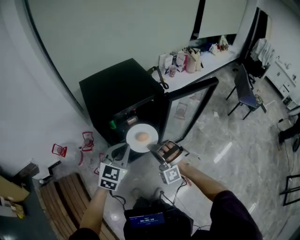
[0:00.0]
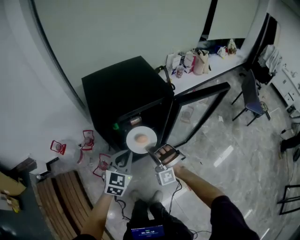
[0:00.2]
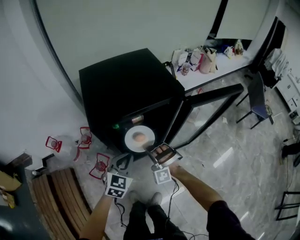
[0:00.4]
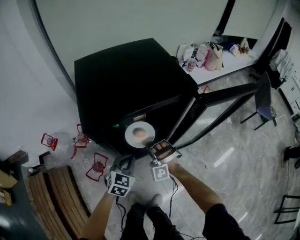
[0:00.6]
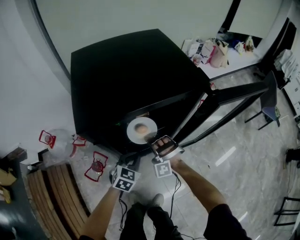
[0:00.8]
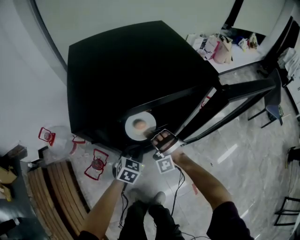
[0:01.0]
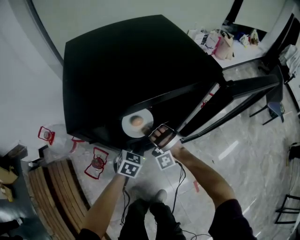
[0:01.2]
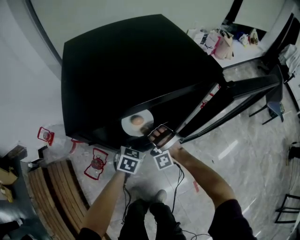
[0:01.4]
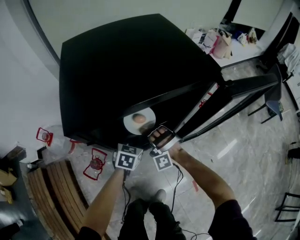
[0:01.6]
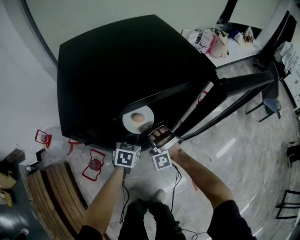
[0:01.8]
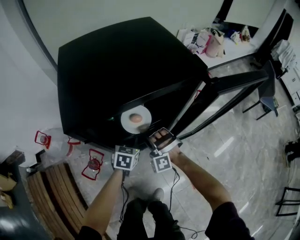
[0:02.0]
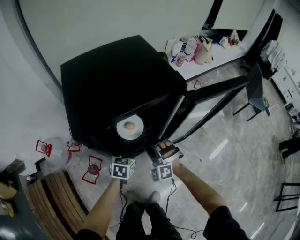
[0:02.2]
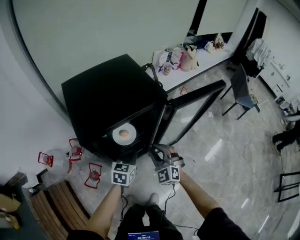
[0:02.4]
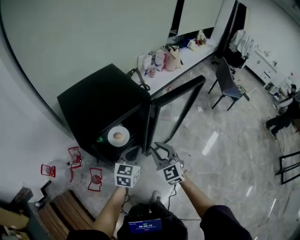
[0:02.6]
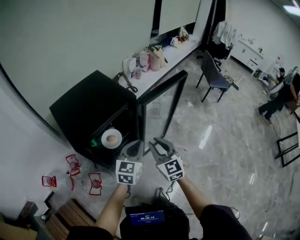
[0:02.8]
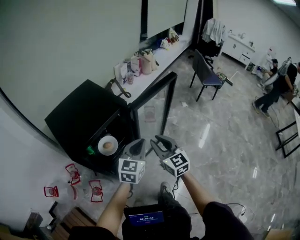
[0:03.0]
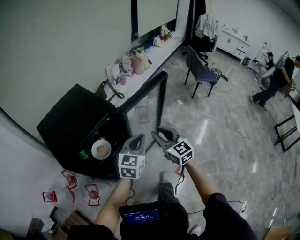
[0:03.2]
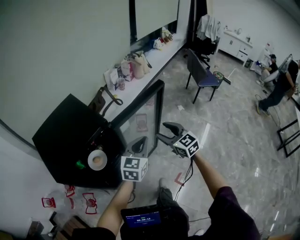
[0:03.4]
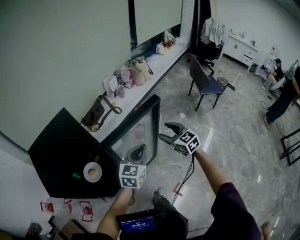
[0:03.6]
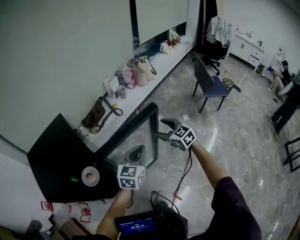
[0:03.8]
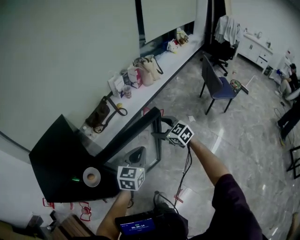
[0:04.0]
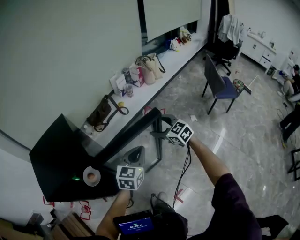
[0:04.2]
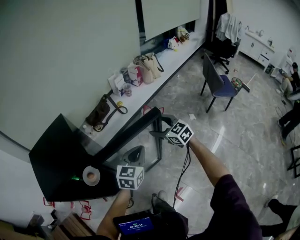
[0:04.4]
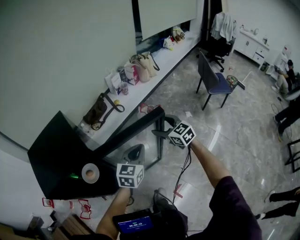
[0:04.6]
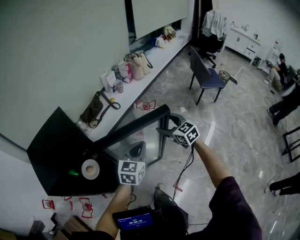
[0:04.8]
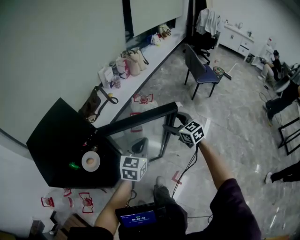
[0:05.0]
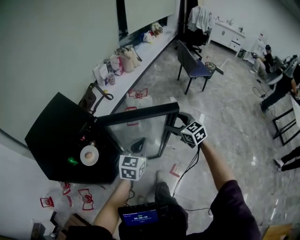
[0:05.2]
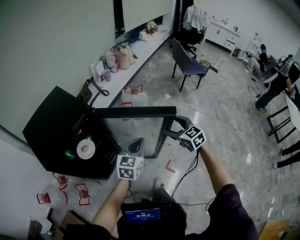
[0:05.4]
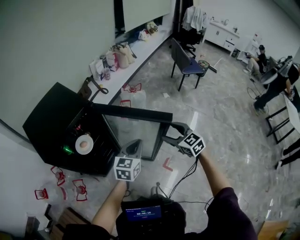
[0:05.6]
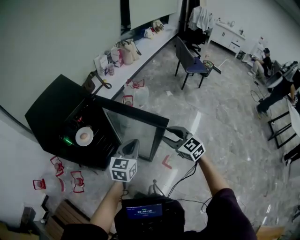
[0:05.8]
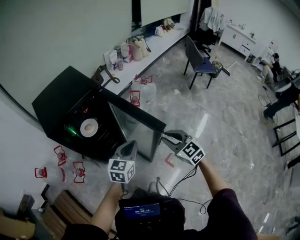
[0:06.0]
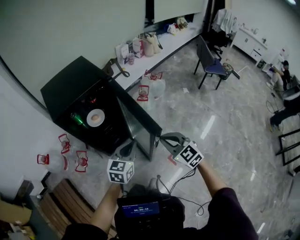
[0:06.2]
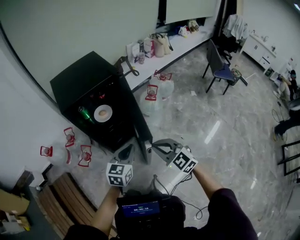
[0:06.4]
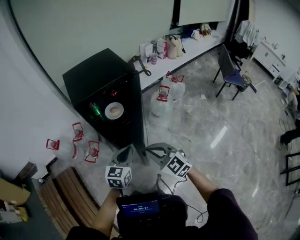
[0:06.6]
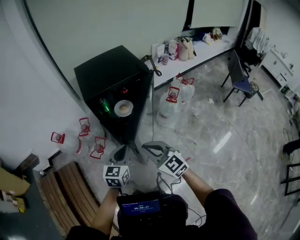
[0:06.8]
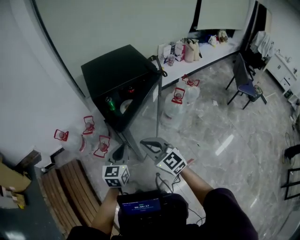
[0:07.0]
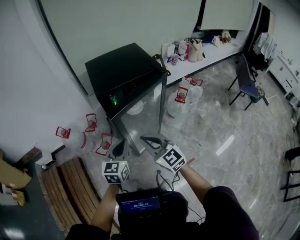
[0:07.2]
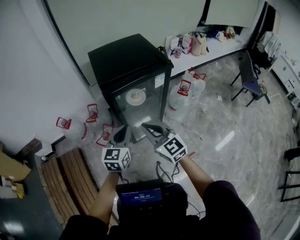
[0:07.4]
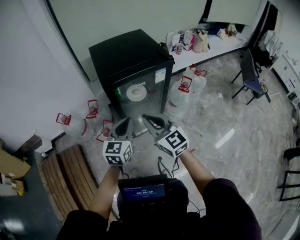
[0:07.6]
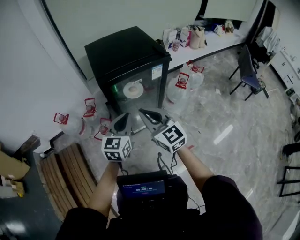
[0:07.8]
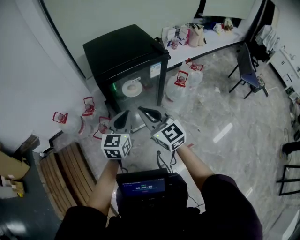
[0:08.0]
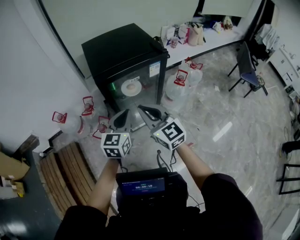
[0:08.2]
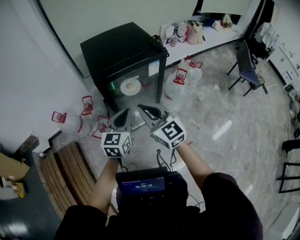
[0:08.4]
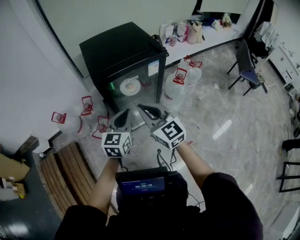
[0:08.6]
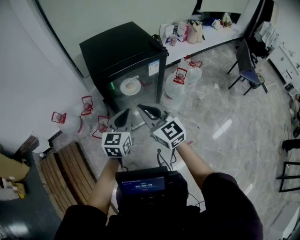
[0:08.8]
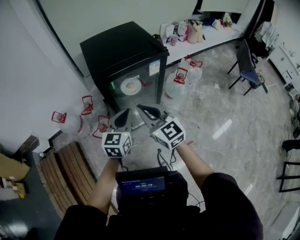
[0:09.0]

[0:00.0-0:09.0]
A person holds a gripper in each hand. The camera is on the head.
0:00.0 to 0:01.6: The grippers both shift downward and forward by approximately 35 cm. The left gripper turns by about 30 degrees.
0:01.6 to 0:03.0: The grippers both shift upward and to the right by roughly 40 cm. The left gripper tilts its fingers about 30 degrees upward; the right gripper rolls clockwise, seen from behind, by about 100 degrees.
0:03.0 to 0:04.4: The grippers both shift forward and to the right by about 35 cm. The right gripper swivels some 30 degrees, and opens its fingers.
0:04.4 to 0:06.0: Both grippers travel together backward, some 40 cm. The right gripper closes its fingers.
0:06.0 to 0:07.6: The right gripper ends up approximately 35 cm from where it was, and swivels some 30 degrees. Meanwhile the left gripper moves some 25 cm, and rotates some 30 degrees.
0:07.6 to 0:09.0: There are only small adjustments of the grippers.

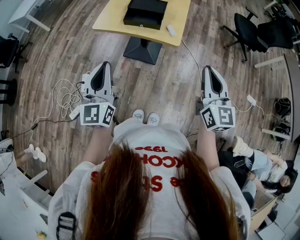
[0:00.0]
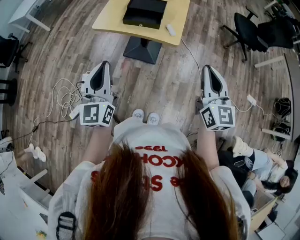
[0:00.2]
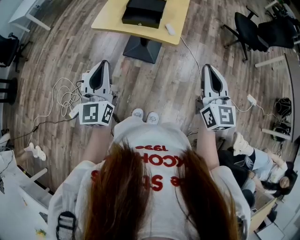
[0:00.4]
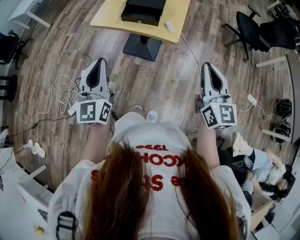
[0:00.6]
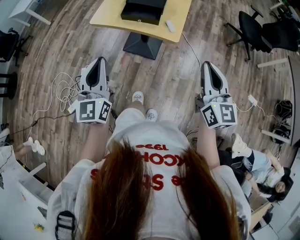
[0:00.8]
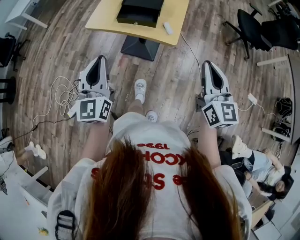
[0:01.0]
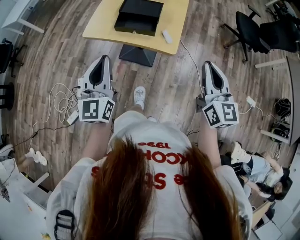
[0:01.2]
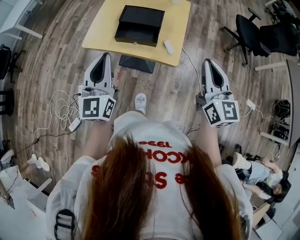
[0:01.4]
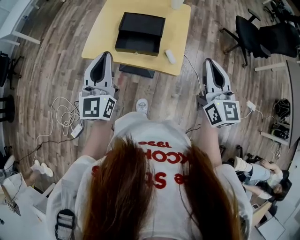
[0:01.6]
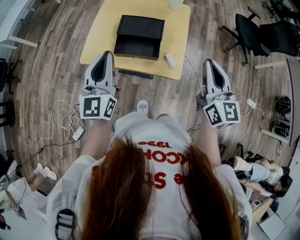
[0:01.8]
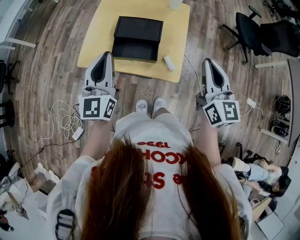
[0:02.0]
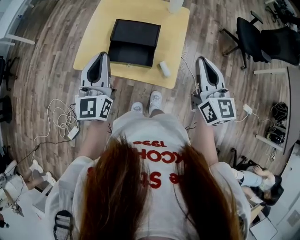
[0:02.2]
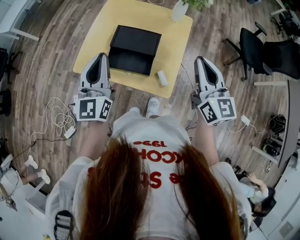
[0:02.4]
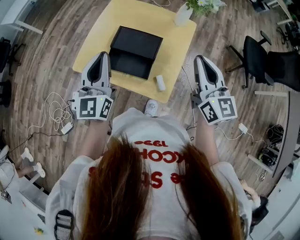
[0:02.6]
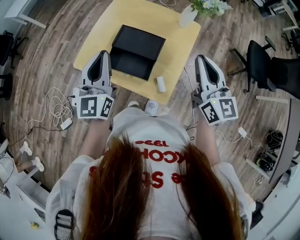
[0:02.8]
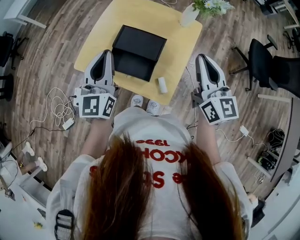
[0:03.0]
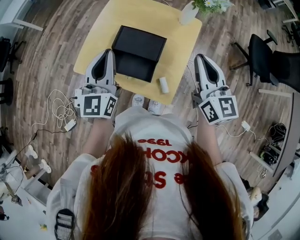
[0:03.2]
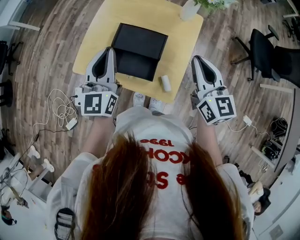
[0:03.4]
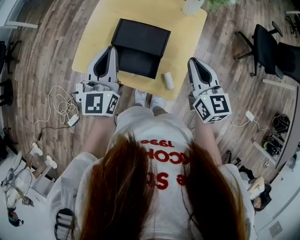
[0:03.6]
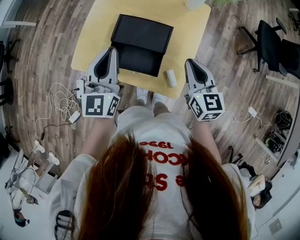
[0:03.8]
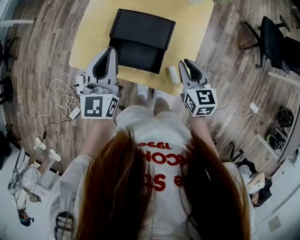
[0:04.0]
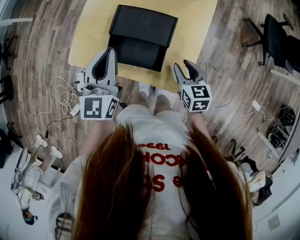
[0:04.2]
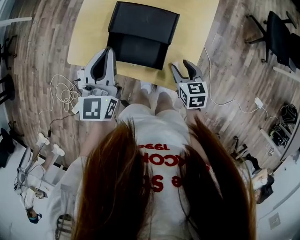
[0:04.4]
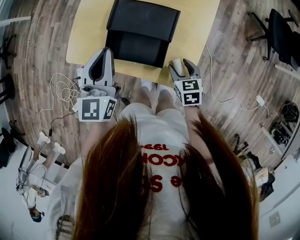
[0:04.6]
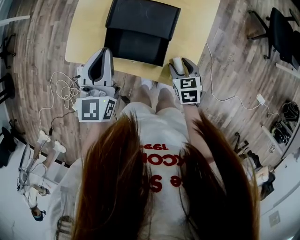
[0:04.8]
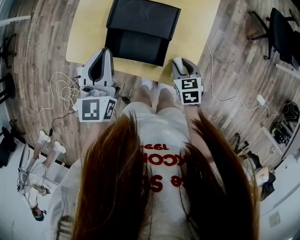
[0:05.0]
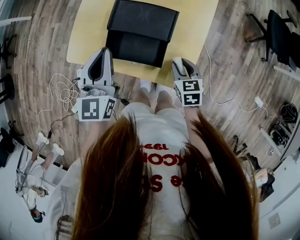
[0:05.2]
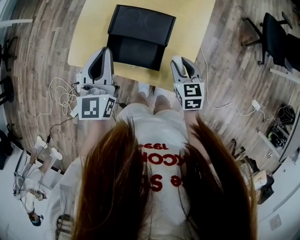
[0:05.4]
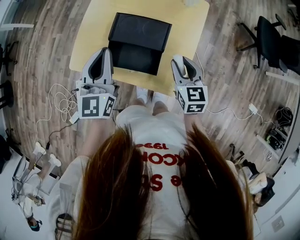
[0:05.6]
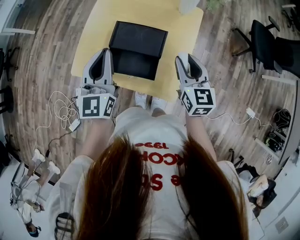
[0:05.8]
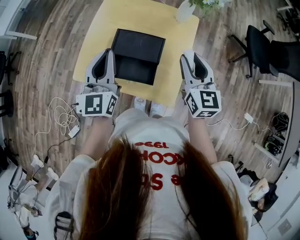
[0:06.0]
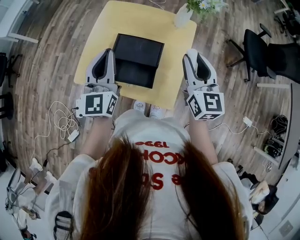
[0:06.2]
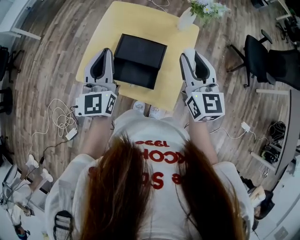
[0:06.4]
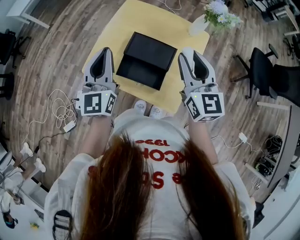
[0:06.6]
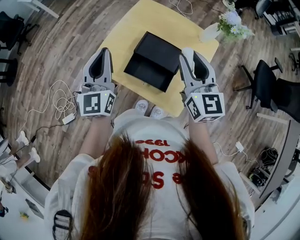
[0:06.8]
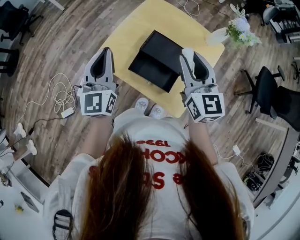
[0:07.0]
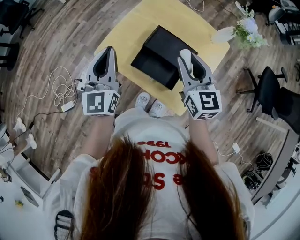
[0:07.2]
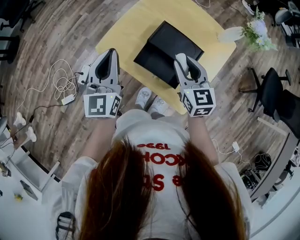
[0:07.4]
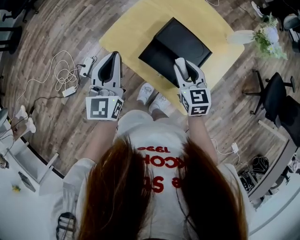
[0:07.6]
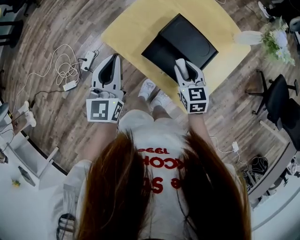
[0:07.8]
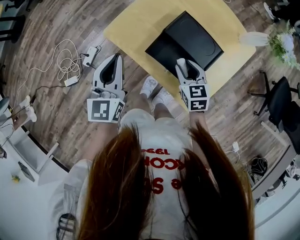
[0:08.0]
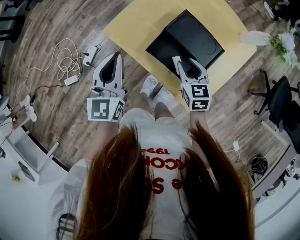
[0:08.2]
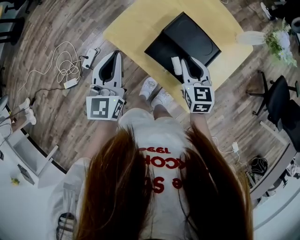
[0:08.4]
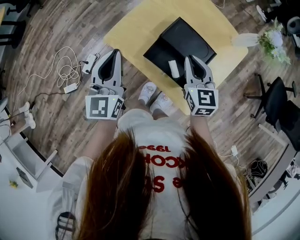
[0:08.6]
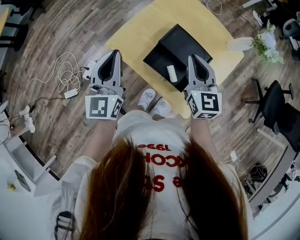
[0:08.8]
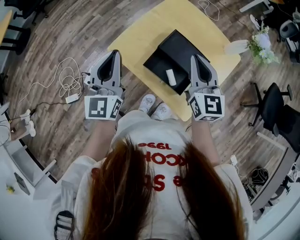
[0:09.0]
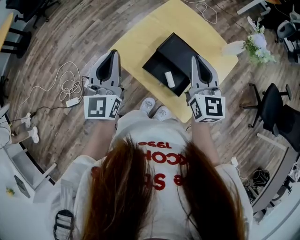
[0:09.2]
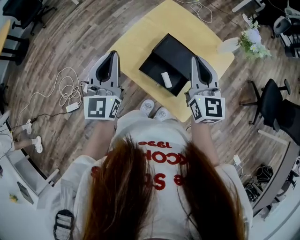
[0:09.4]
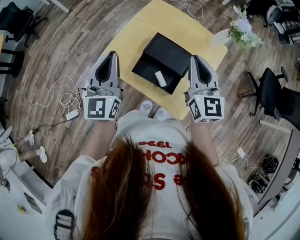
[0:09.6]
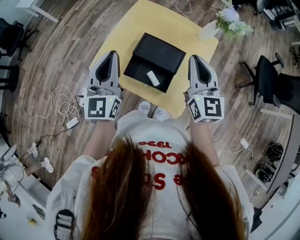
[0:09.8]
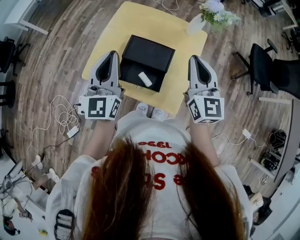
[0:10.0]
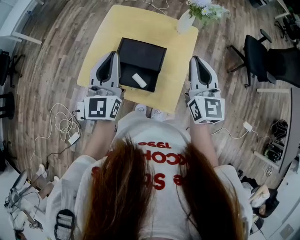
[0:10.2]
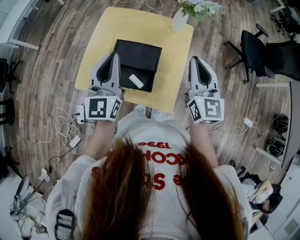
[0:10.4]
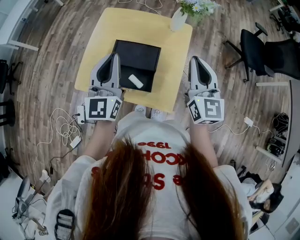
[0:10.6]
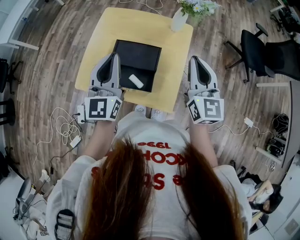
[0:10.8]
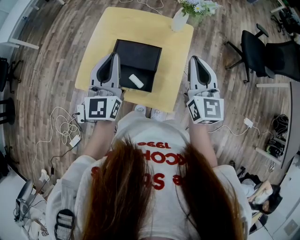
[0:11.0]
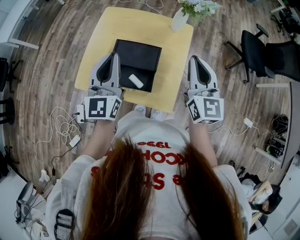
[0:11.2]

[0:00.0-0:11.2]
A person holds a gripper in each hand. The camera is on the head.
0:00.0 to 0:01.6: The grippers both shift forward by about 20 cm.
0:01.6 to 0:03.2: The grippers both shift forward by about 15 cm.
0:03.2 to 0:04.8: The left gripper moves downward, approximately 10 cm. The right gripper heads downward, covering some 30 cm, points its fingers about 50 degrees further downward, and opens up.
0:04.8 to 0:06.4: The left gripper heads upward, covering roughly 10 cm; the right gripper moves upward, roughly 30 cm, points its fingers roughly 50 degrees further upward, and closes.
0:06.4 to 0:08.0: The right gripper goes roughly 25 cm downward, and points its fingers some 30 degrees further downward. The left gripper ends up roughly 15 cm from where it was, and rotates approximately 30 degrees.
0:08.0 to 0:09.6: The left gripper moves upward, about 10 cm. Meanwhile the right gripper moves upward, approximately 25 cm, points its fingers about 40 degrees further upward, and closes its fingers.
0:09.6 to 0:11.2: Both grippers move to the right, some 15 cm. The right gripper changes its angle by approximately 20 degrees.

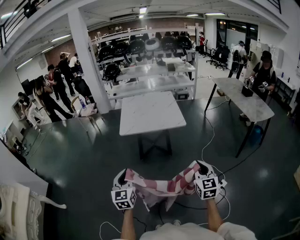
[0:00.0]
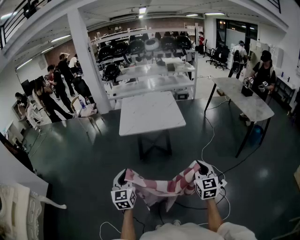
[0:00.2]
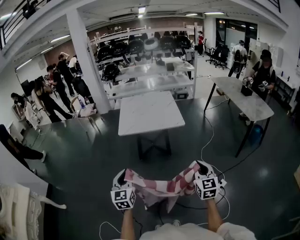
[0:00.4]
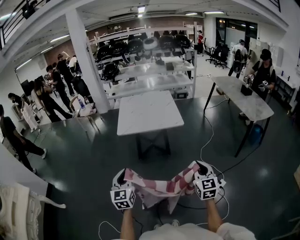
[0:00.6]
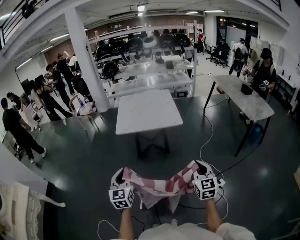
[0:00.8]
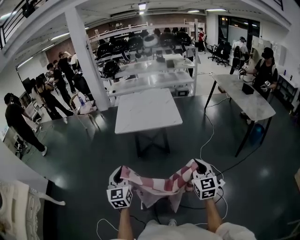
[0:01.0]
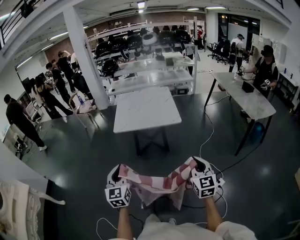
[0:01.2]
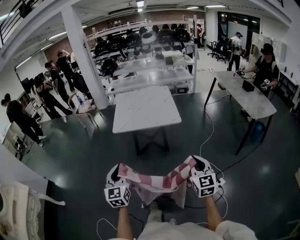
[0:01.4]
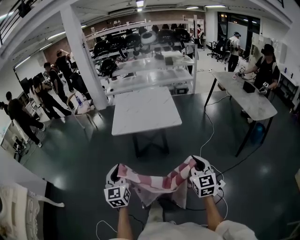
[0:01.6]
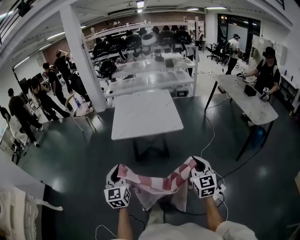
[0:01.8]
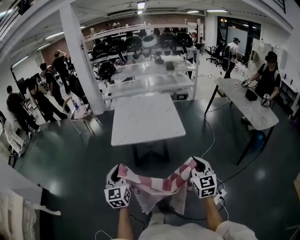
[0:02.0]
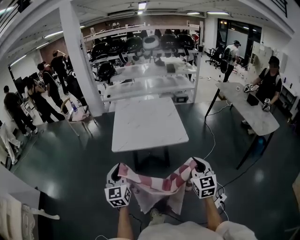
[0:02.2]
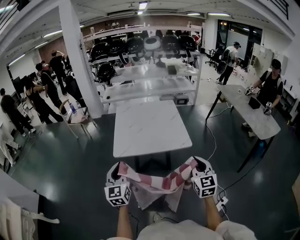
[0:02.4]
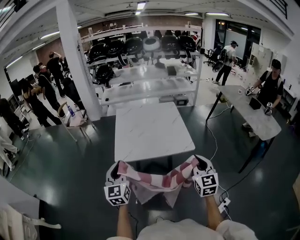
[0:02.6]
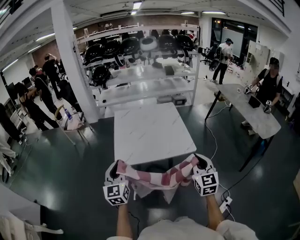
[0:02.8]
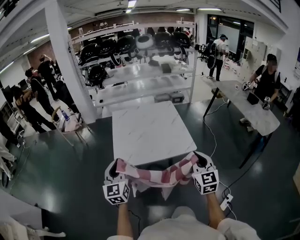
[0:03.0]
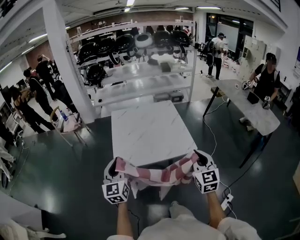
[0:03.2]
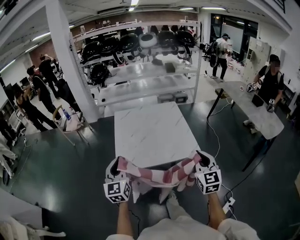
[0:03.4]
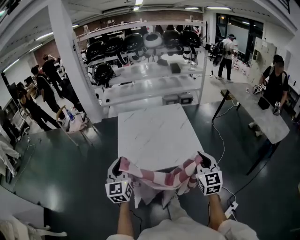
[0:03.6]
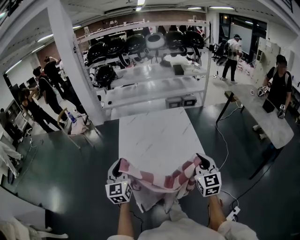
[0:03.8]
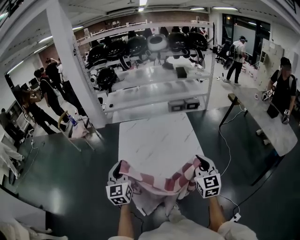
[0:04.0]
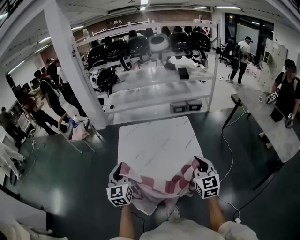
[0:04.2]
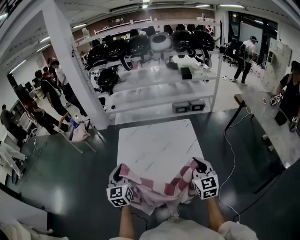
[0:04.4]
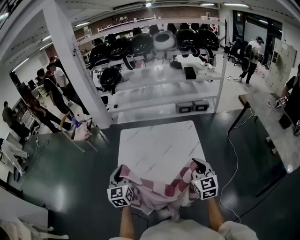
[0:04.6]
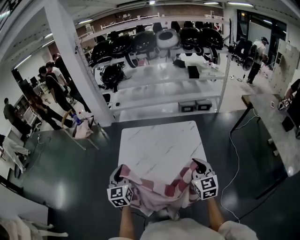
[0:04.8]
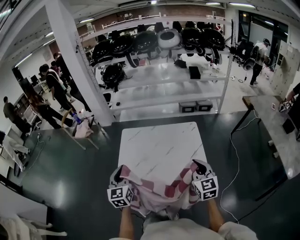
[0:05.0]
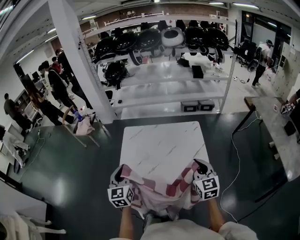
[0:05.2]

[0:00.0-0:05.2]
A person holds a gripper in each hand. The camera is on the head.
0:00.0 to 0:01.8: The grippers both shift forward and to the right by approximately 15 cm.
0:01.8 to 0:03.4: The two grippers go approximately 35 cm forward.
0:03.4 to 0:05.2: The two grippers go roughly 35 cm forward.
